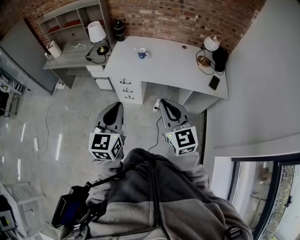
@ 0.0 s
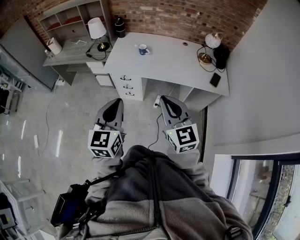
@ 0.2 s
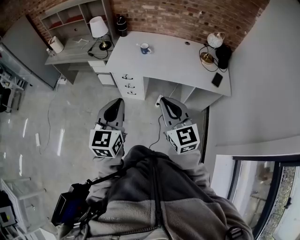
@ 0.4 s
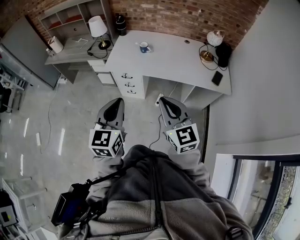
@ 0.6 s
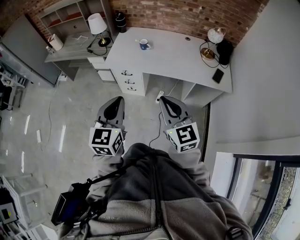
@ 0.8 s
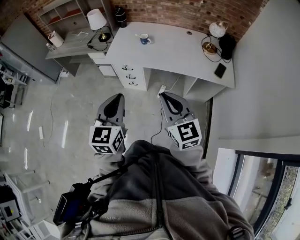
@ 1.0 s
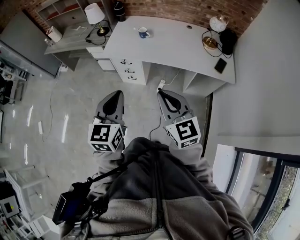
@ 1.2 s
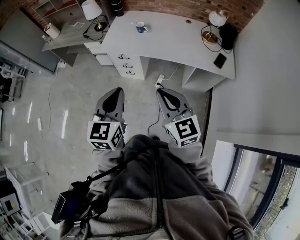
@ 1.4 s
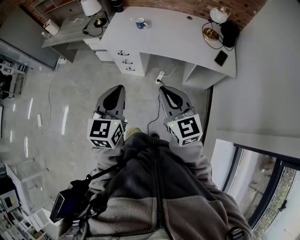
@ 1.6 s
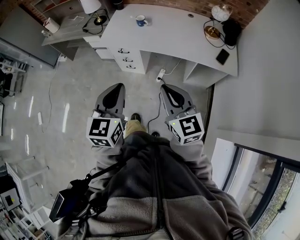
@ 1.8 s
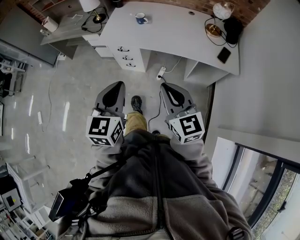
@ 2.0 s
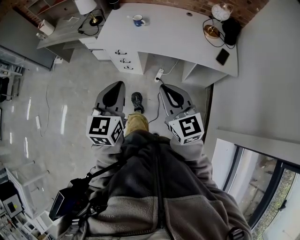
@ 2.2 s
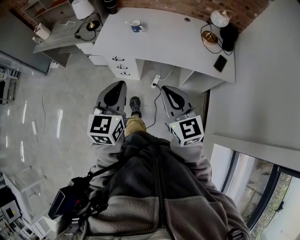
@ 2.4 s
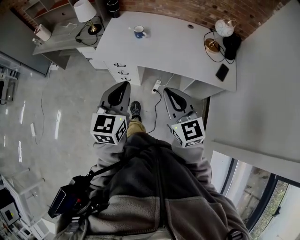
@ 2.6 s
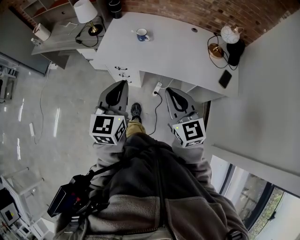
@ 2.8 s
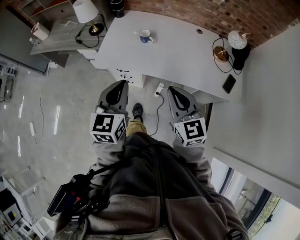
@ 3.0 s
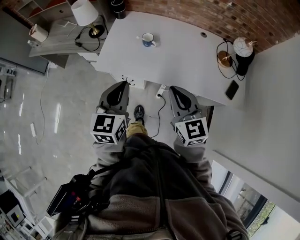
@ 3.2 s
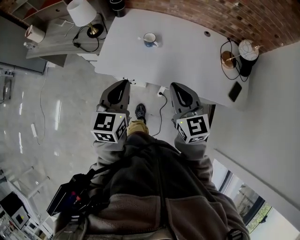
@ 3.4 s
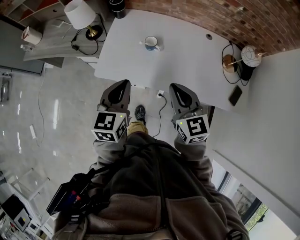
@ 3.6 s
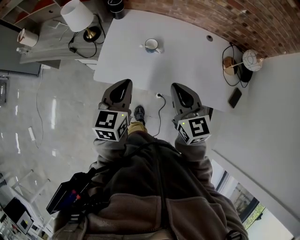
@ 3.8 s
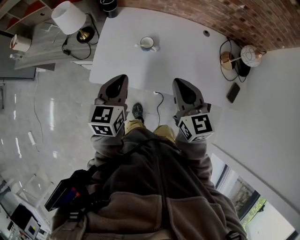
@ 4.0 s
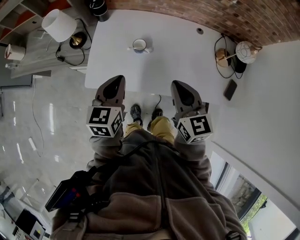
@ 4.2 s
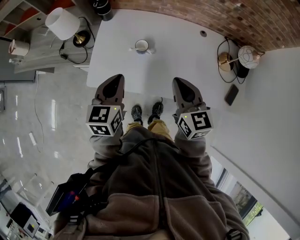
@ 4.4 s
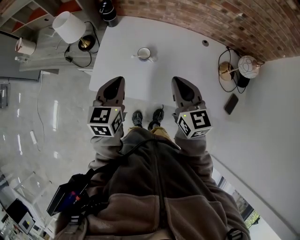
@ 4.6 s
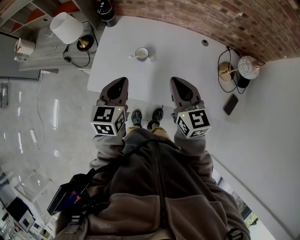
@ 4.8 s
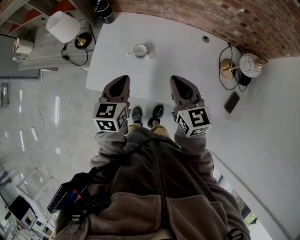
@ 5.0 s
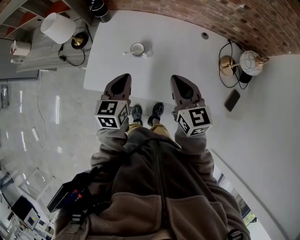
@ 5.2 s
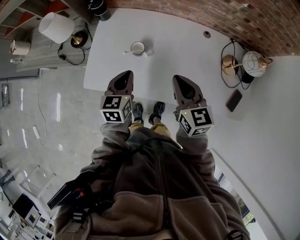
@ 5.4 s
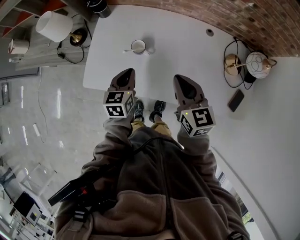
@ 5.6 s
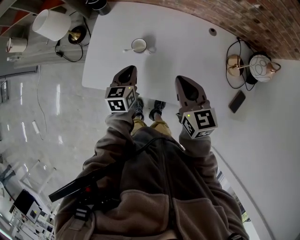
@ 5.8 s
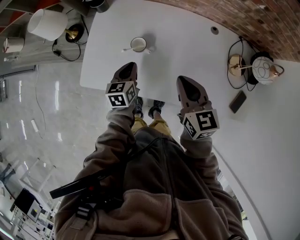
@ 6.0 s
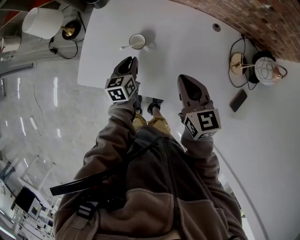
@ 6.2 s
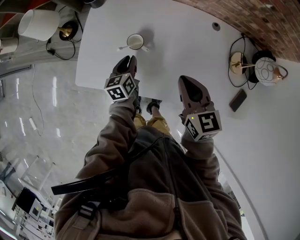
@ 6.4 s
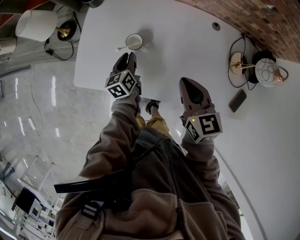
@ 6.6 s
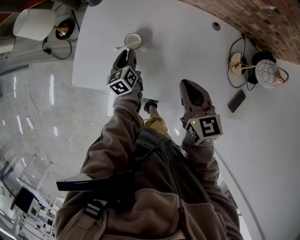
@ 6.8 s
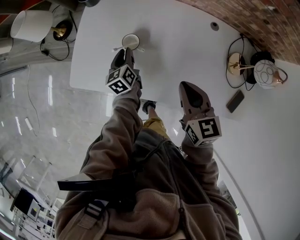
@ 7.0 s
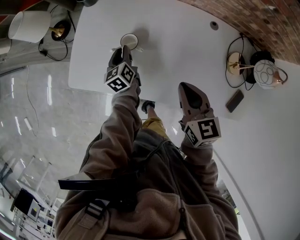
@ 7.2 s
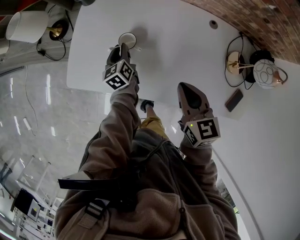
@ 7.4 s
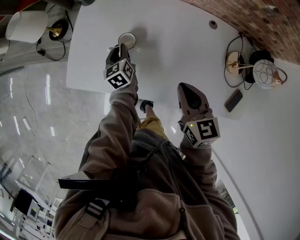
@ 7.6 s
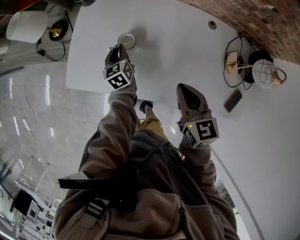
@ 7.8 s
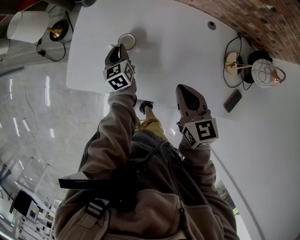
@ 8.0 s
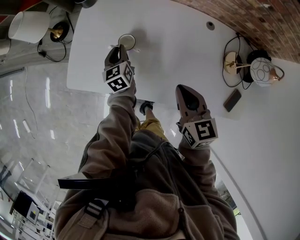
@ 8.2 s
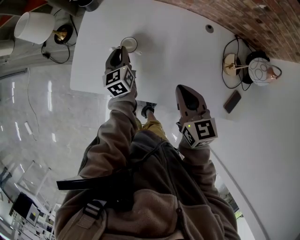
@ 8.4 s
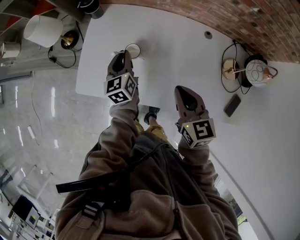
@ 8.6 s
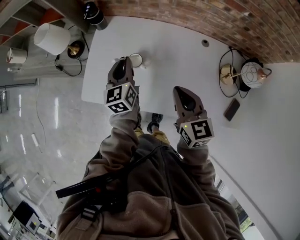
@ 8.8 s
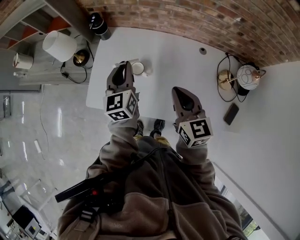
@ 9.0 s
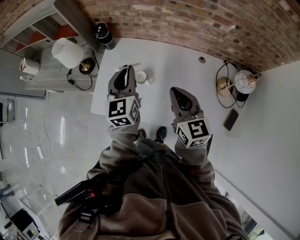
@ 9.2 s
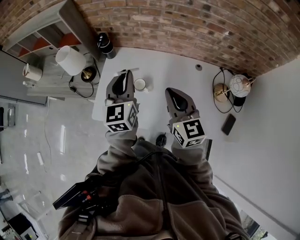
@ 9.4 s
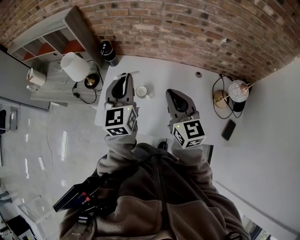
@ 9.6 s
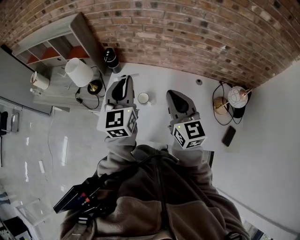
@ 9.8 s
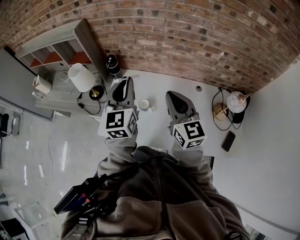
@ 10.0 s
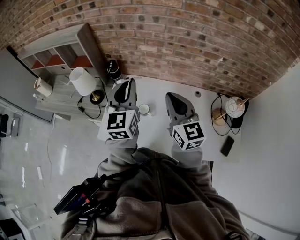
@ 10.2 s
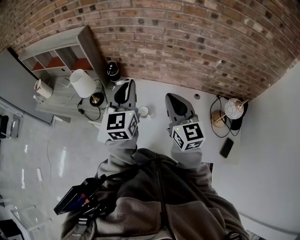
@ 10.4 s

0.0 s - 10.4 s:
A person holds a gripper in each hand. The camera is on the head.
0.0 s - 1.4 s: The right gripper heads downward, covering roughly 5 cm. Meanwhile the left gripper goes about 5 cm to the right.
1.4 s - 3.0 s: The two grippers go about 25 cm forward.
3.0 s - 4.4 s: Both grippers move forward, roughly 25 cm.
4.4 s - 6.0 s: The left gripper moves downward and forward, approximately 20 cm. Meanwhile the right gripper moves forward and downward, approximately 10 cm.
6.0 s - 7.4 s: The left gripper heads forward and downward, covering about 10 cm, and turns by roughly 20 degrees. The right gripper changes place by roughly 5 cm.
7.4 s - 9.0 s: The right gripper heads upward, covering roughly 10 cm, while the left gripper heads upward, covering about 25 cm, and changes its angle by approximately 30 degrees.
9.0 s - 10.4 s: Both grippers move upward, approximately 15 cm.

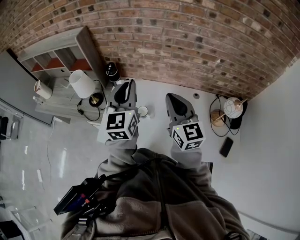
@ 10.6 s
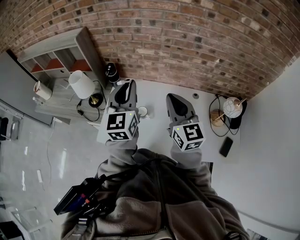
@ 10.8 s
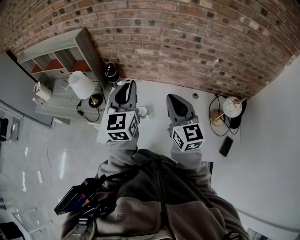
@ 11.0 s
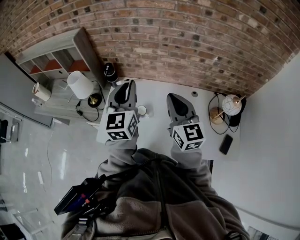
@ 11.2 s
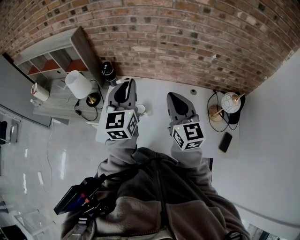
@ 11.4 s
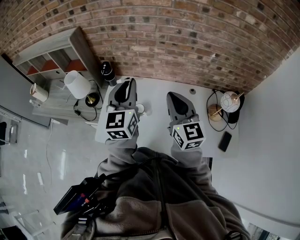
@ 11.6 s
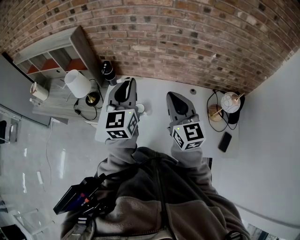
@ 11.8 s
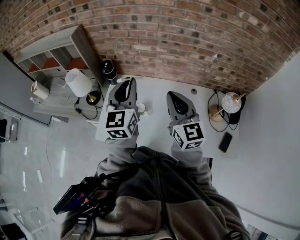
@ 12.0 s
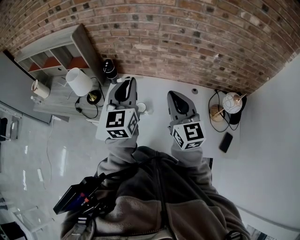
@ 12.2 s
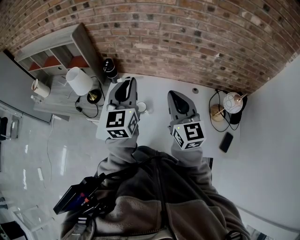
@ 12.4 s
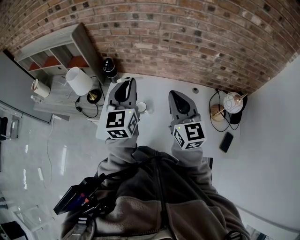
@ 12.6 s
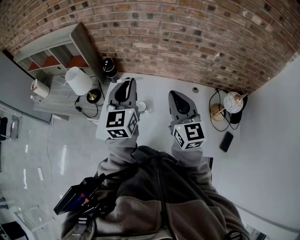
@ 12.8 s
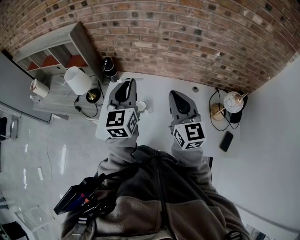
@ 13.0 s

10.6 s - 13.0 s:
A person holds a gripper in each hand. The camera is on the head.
10.6 s - 13.0 s: The grippers move only a little.

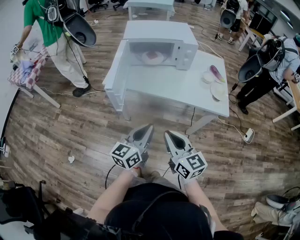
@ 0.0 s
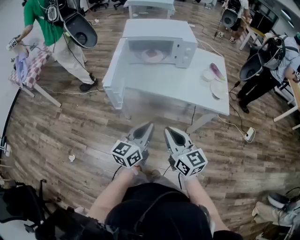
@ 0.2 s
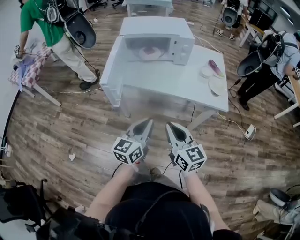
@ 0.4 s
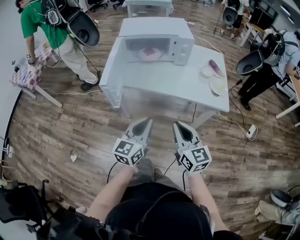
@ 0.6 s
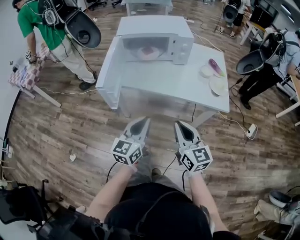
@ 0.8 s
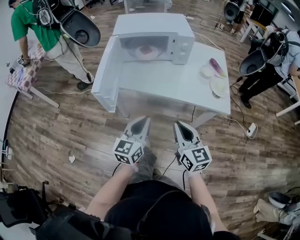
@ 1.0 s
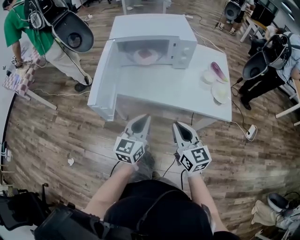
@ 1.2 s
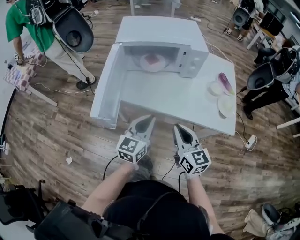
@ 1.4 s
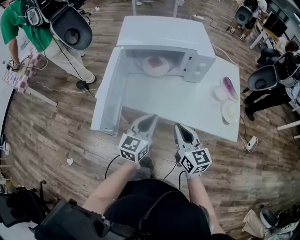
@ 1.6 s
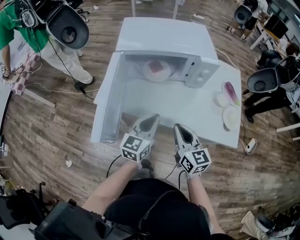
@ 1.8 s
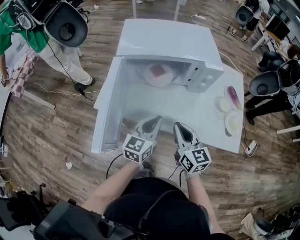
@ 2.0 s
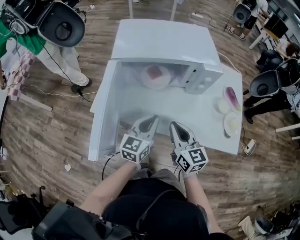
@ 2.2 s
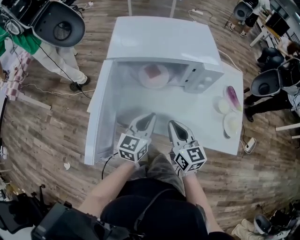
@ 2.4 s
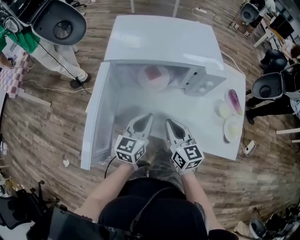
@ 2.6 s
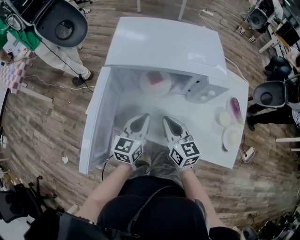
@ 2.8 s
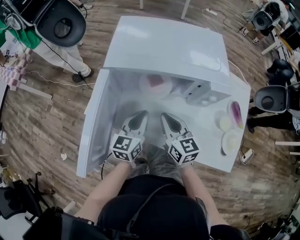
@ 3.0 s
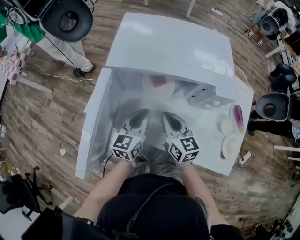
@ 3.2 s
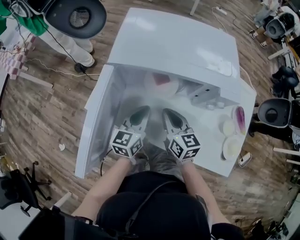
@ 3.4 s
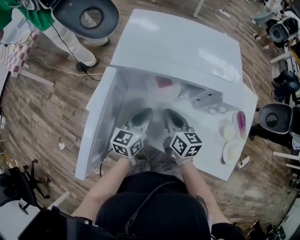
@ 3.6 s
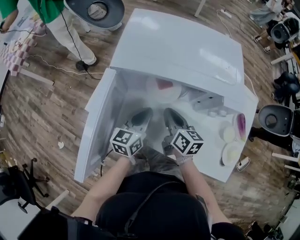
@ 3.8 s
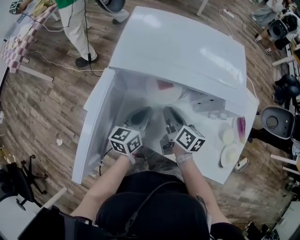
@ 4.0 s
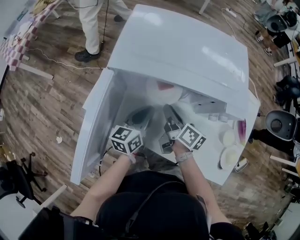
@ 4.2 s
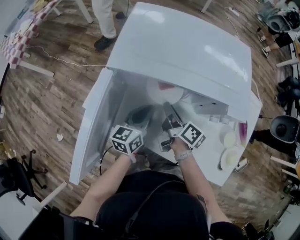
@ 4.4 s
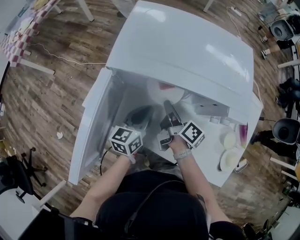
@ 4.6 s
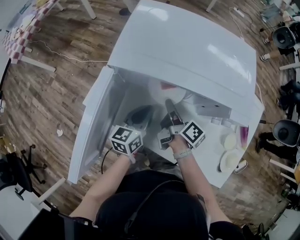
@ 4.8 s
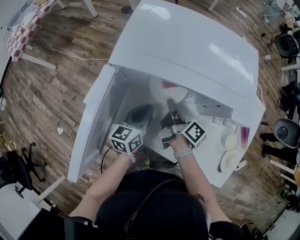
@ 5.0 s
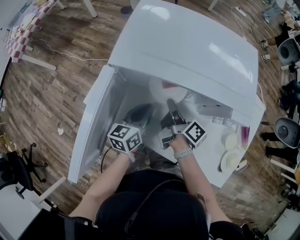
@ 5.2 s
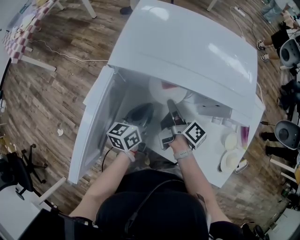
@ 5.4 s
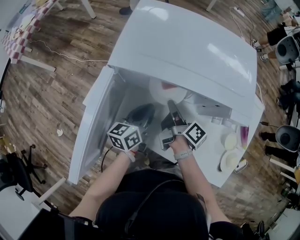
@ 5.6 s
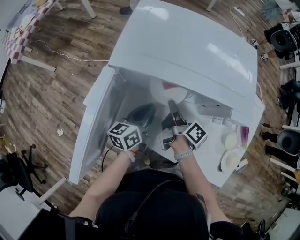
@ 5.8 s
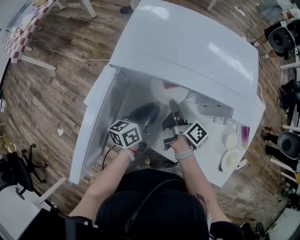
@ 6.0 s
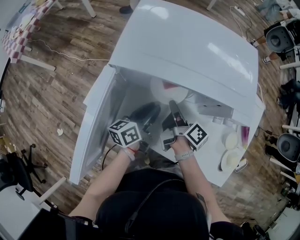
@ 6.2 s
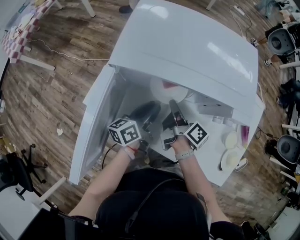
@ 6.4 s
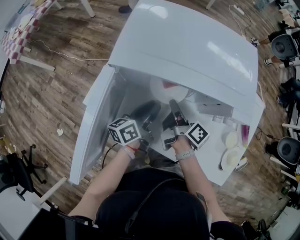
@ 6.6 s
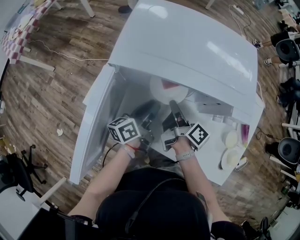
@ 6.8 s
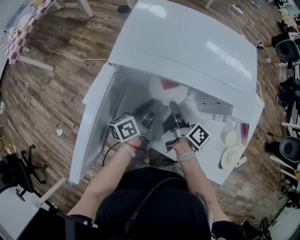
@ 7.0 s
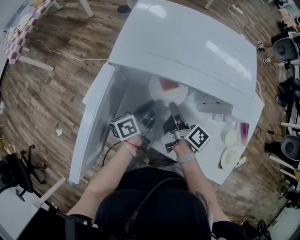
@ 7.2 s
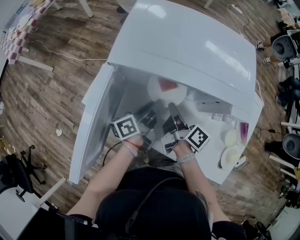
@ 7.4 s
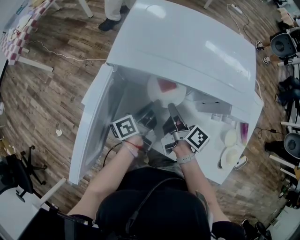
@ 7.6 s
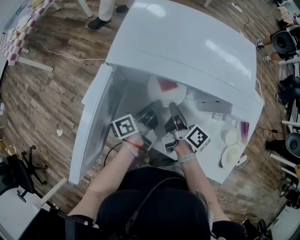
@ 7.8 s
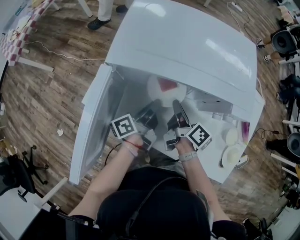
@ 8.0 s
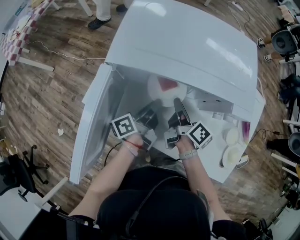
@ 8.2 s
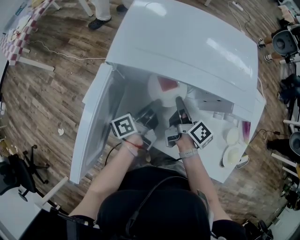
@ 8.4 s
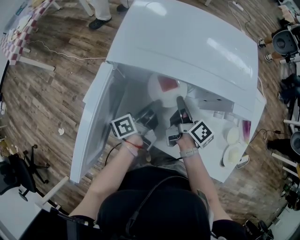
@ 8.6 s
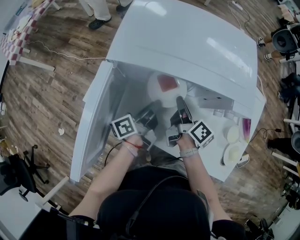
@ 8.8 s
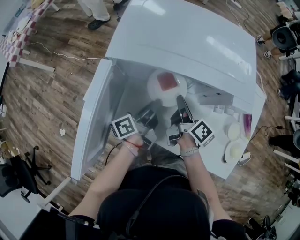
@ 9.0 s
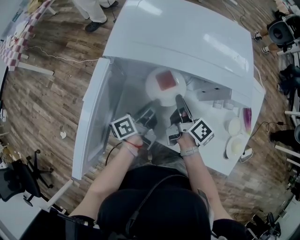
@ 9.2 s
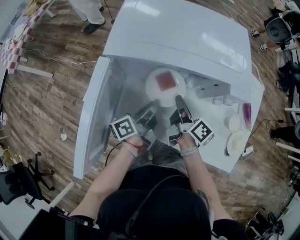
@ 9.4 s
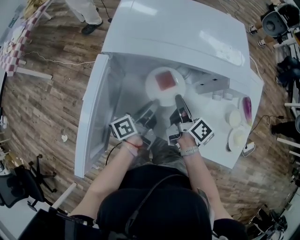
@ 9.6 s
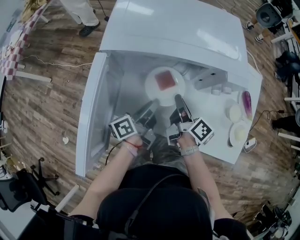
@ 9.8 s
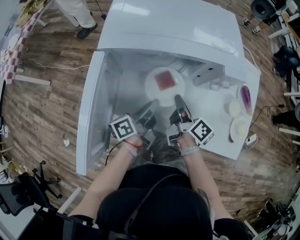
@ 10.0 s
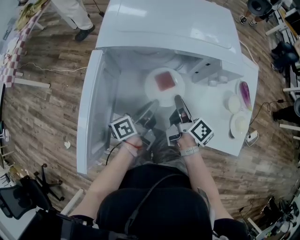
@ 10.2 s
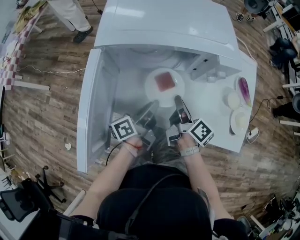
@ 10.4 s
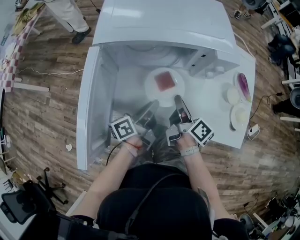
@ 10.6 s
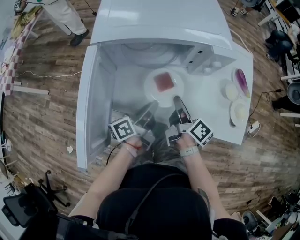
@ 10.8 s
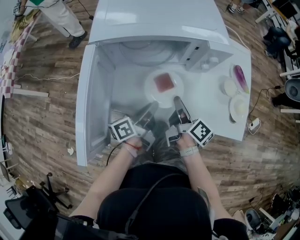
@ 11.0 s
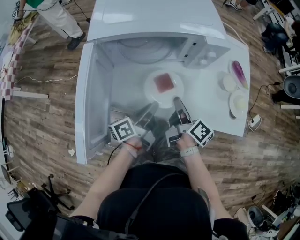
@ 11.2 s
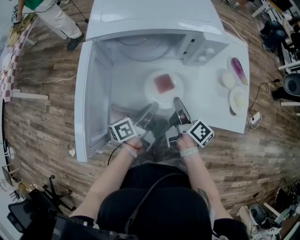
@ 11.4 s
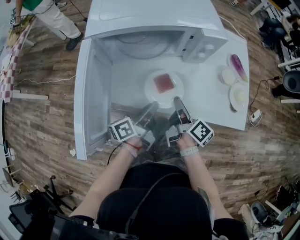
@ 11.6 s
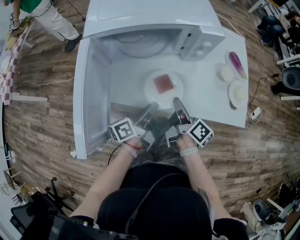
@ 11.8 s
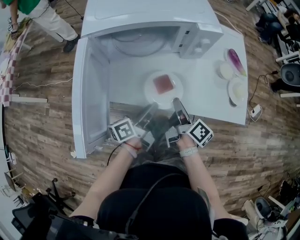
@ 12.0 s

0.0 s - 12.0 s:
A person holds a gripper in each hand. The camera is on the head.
0.0 s - 1.6 s: The two grippers go about 20 cm forward.
1.6 s - 3.0 s: Both grippers travel together forward, roughly 20 cm.
3.0 s - 4.4 s: The left gripper travels downward by some 5 cm; the right gripper travels forward and downward by approximately 10 cm, twists about 50 degrees clockwise, seen from behind, and opens up.
4.4 s - 6.0 s: The left gripper opens up.
6.0 s - 7.6 s: The left gripper changes its angle by approximately 30 degrees.
7.6 s - 9.0 s: The grippers move only a little.
9.0 s - 10.4 s: Both grippers move backward, about 10 cm.
10.4 s - 12.0 s: The two grippers go some 10 cm backward.
